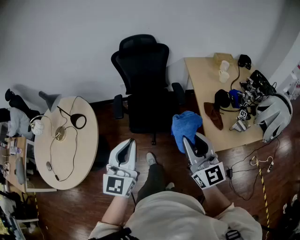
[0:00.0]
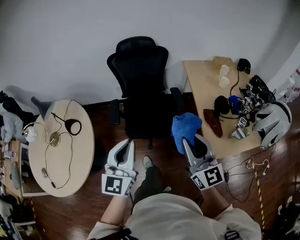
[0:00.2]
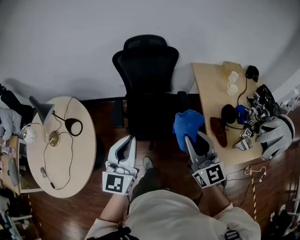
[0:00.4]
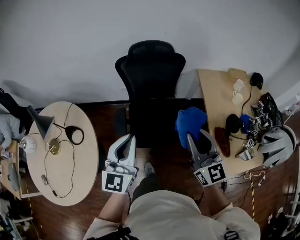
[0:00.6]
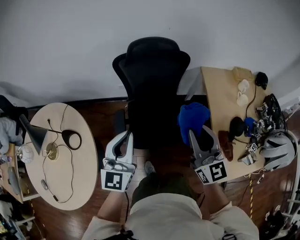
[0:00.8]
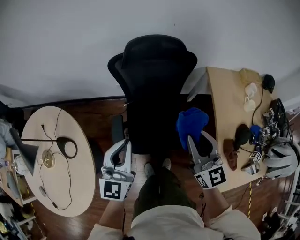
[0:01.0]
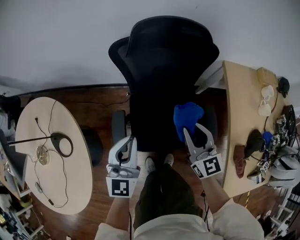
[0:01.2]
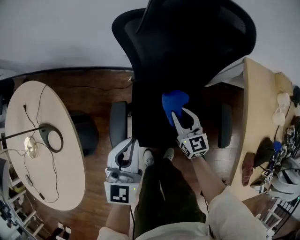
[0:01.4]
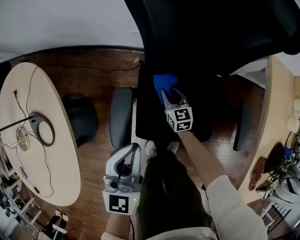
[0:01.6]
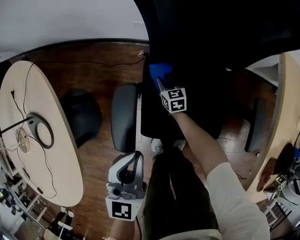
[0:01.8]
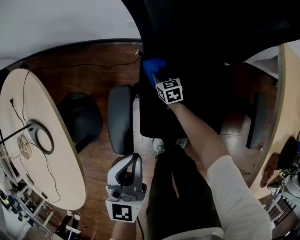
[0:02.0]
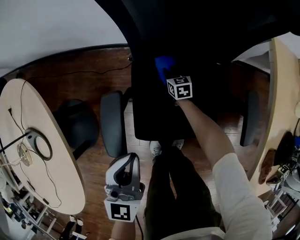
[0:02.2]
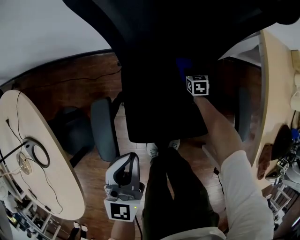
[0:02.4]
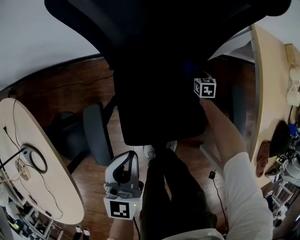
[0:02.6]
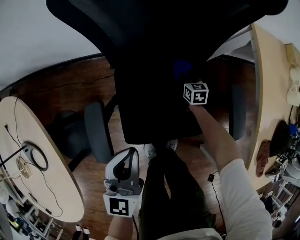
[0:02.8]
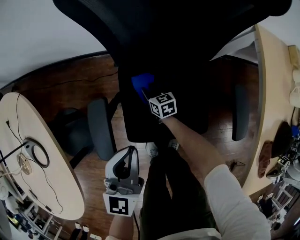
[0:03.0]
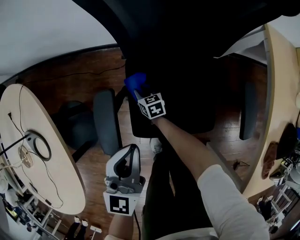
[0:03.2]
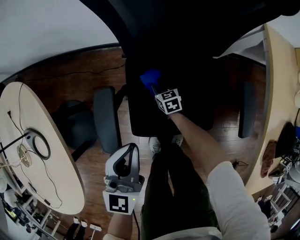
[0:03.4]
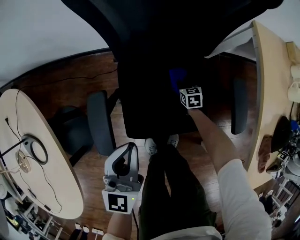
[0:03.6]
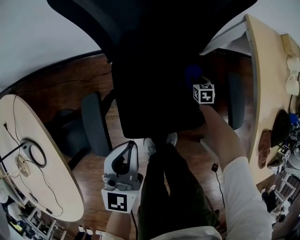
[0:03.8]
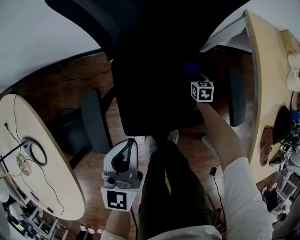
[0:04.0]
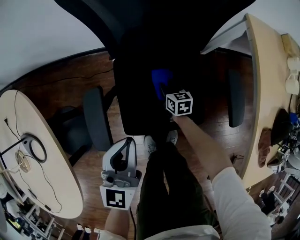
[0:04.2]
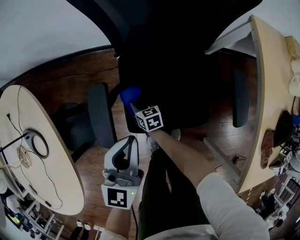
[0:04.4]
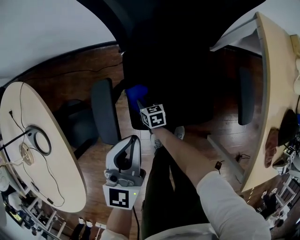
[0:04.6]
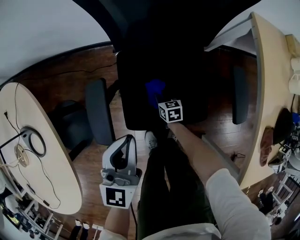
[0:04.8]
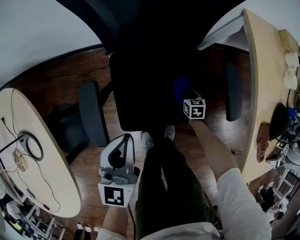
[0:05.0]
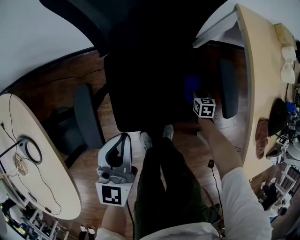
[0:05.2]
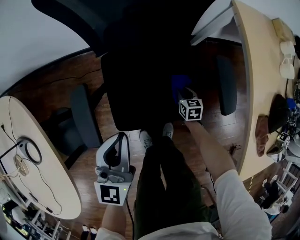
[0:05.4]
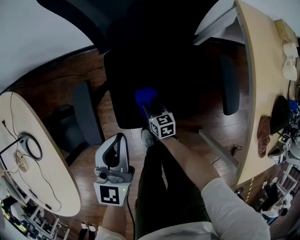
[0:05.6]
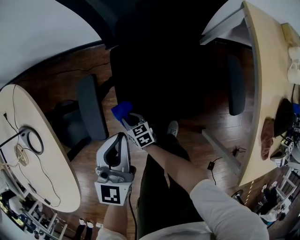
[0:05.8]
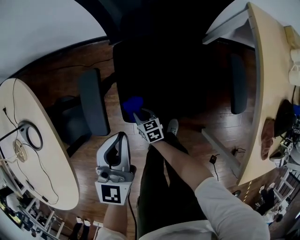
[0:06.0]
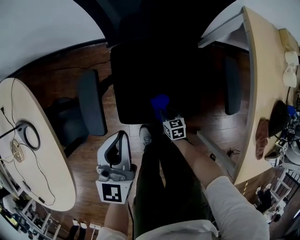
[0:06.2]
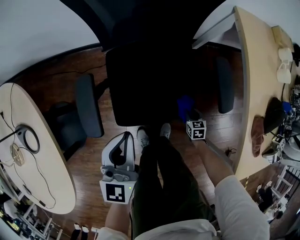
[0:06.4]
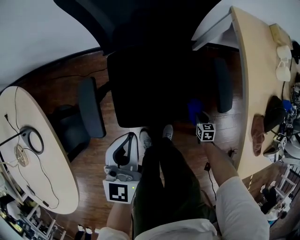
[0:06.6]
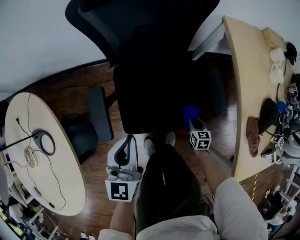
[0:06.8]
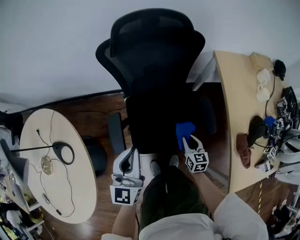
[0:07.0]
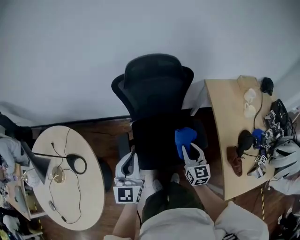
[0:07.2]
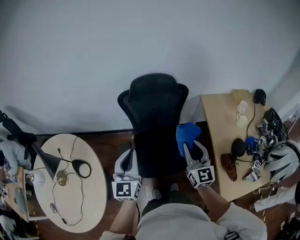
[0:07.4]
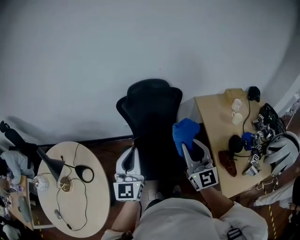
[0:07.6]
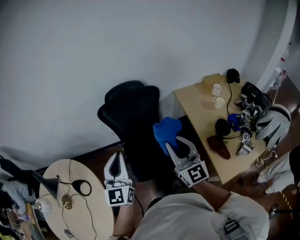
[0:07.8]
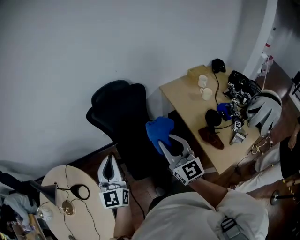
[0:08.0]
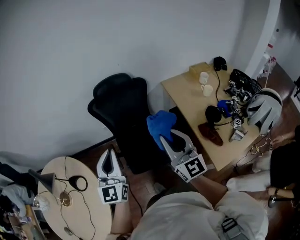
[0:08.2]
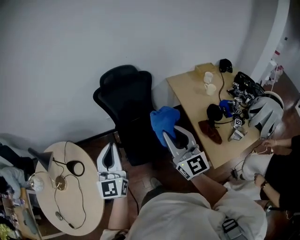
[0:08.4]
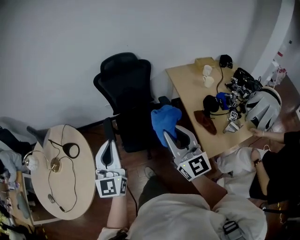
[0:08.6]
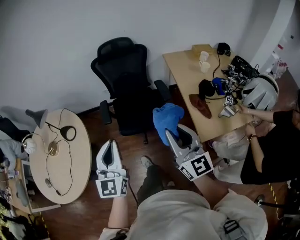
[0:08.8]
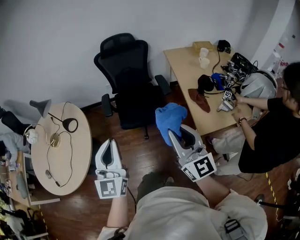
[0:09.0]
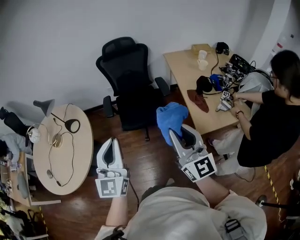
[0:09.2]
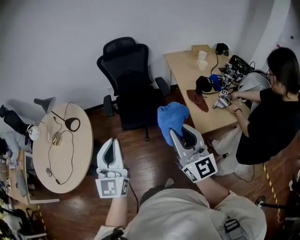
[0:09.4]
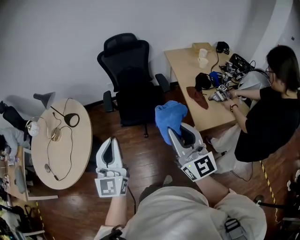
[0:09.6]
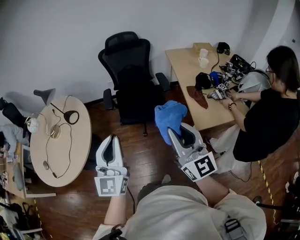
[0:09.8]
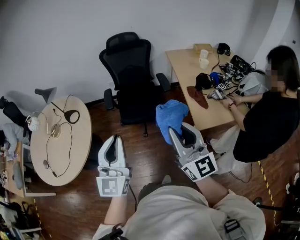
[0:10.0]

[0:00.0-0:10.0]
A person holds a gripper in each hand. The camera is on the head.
0:00.0 to 0:01.4: The pair of grippers is taken forward, approximately 70 cm. The left gripper shifts about 25 cm downward. Meanwhile the right gripper travels downward by roughly 50 cm, and tilts its fingers about 40 degrees downward.
0:01.4 to 0:02.8: The right gripper shifts about 35 cm downward and to the right, and changes its angle by roughly 40 degrees. The left gripper goes some 15 cm downward and to the right.
0:02.8 to 0:04.2: The right gripper swings left and right, about 35 cm each way, with 2 reversals.
0:04.2 to 0:05.8: The right gripper swings left and right, about 40 cm each way, with 2 reversals.
0:05.8 to 0:07.2: The right gripper goes approximately 60 cm upward and to the right, and tips its fingers upward by roughly 40 degrees; the left gripper is displaced upward and backward by roughly 35 cm.
0:07.2 to 0:08.6: The left gripper goes some 40 cm backward. The right gripper is displaced backward and upward by approximately 50 cm, and changes its angle by roughly 30 degrees.
0:08.6 to 0:10.0: Both grippers move backward, some 25 cm.

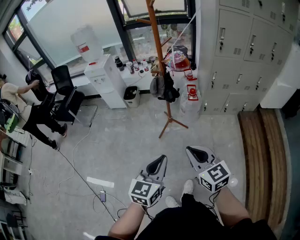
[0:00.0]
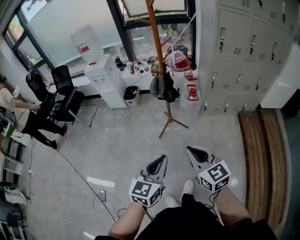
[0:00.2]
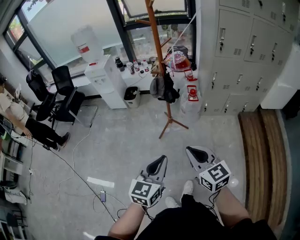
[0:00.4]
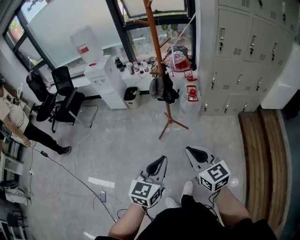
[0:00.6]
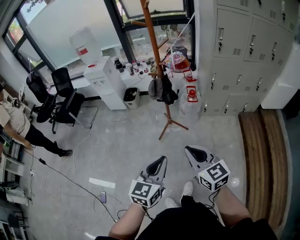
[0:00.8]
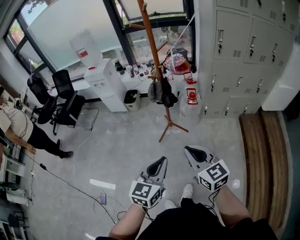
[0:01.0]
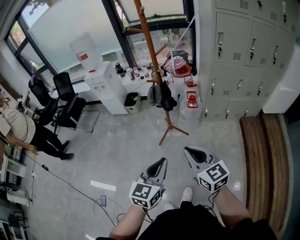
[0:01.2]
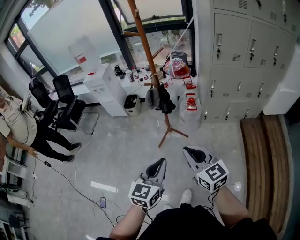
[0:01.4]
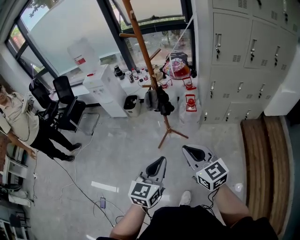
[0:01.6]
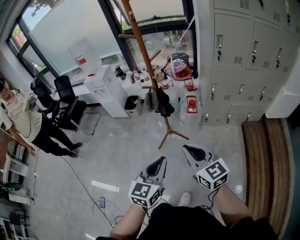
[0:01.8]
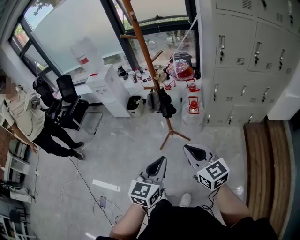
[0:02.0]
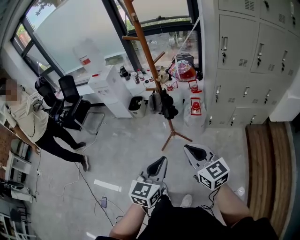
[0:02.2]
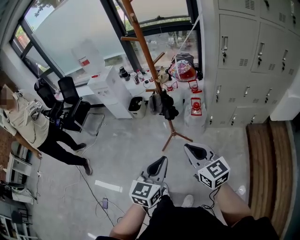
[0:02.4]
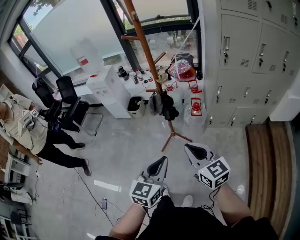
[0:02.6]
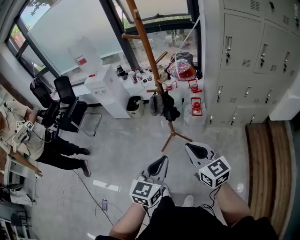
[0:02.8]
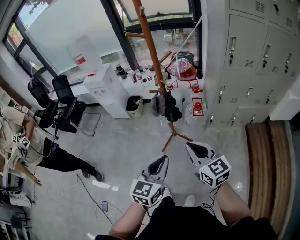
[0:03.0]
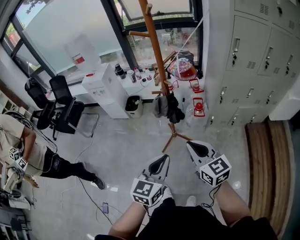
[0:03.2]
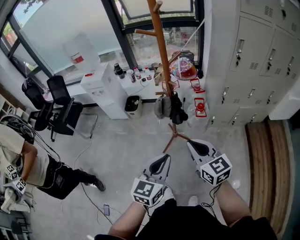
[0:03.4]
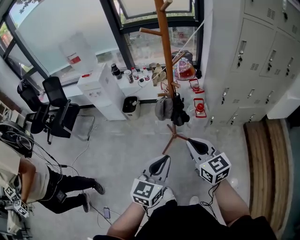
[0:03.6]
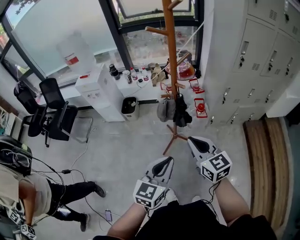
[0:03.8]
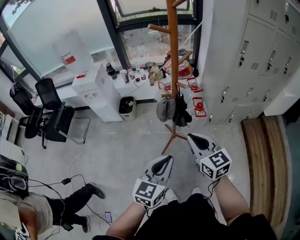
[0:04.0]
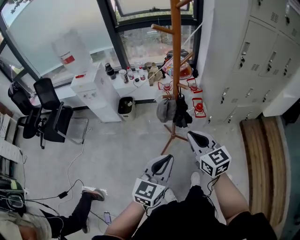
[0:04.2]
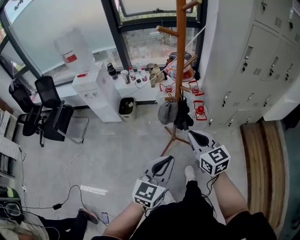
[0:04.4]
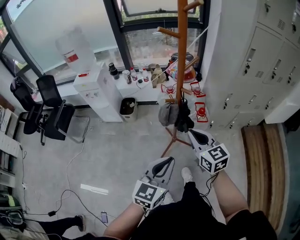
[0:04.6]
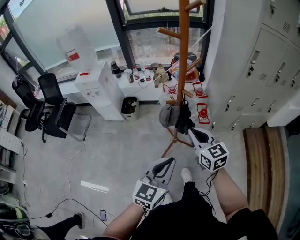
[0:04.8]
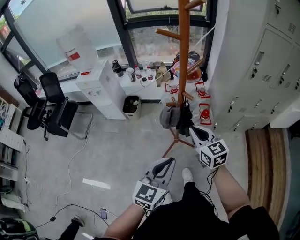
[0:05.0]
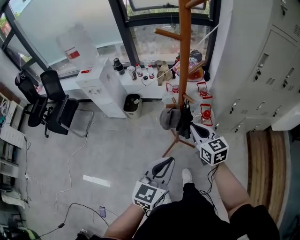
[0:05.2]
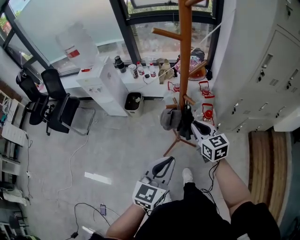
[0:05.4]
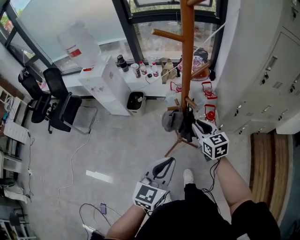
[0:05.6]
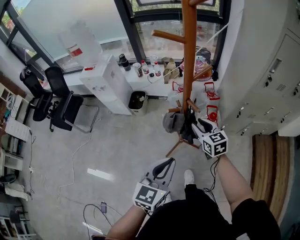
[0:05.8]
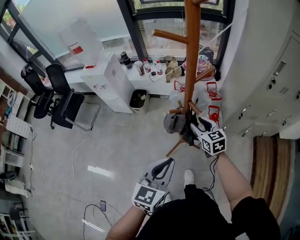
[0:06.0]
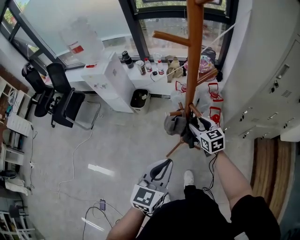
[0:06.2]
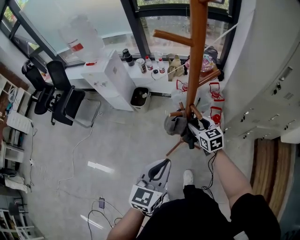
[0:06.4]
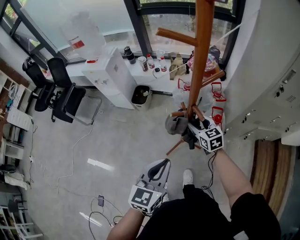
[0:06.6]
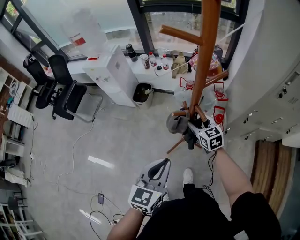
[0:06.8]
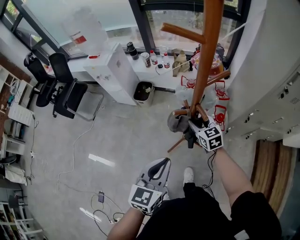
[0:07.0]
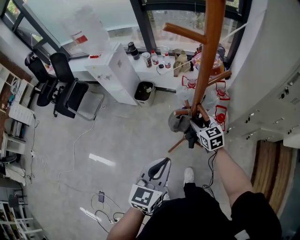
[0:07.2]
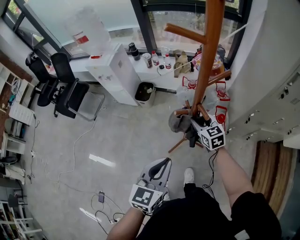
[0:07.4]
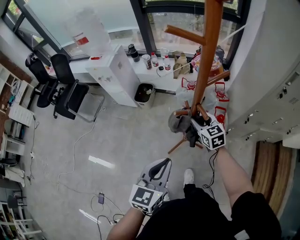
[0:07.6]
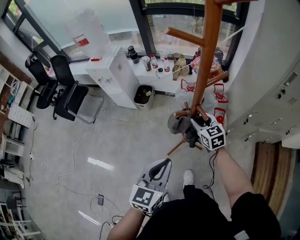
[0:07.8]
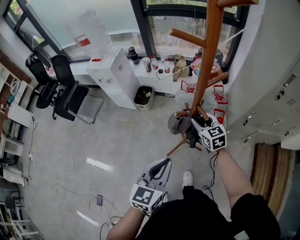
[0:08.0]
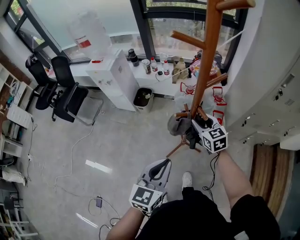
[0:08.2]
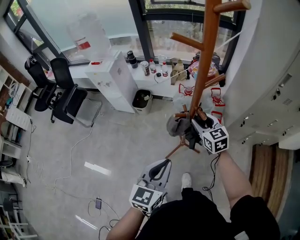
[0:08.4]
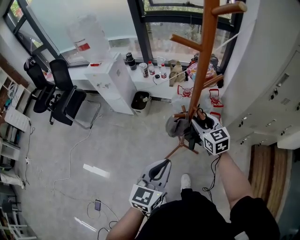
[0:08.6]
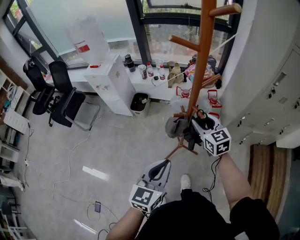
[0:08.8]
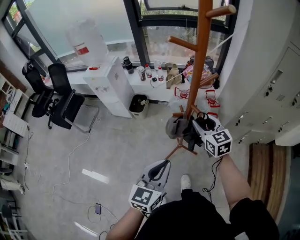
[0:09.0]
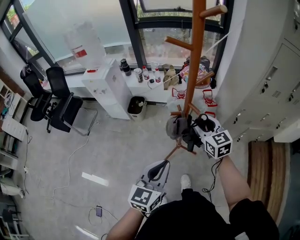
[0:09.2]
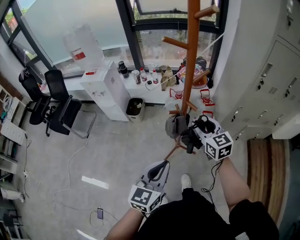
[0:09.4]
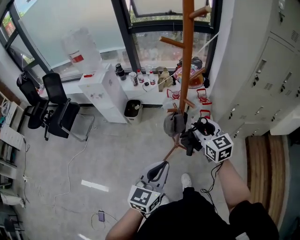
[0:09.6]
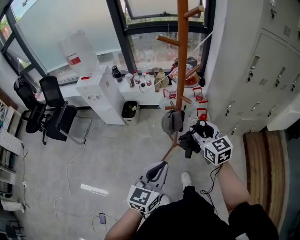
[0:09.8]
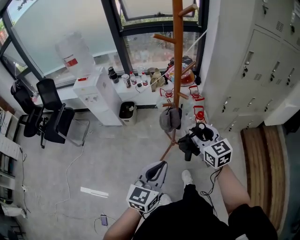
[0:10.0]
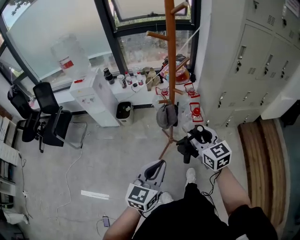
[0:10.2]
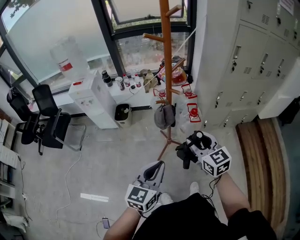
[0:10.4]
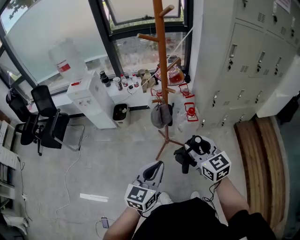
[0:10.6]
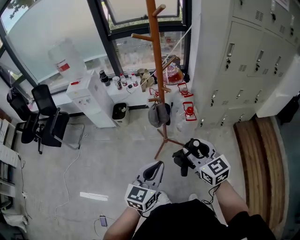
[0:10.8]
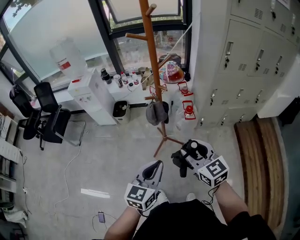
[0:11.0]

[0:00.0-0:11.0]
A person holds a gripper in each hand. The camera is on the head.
0:00.0 to 0:01.6: The left gripper travels to the right and forward by roughly 10 cm. The right gripper goes some 10 cm forward and to the right.
0:01.6 to 0:03.2: The left gripper heads forward and to the left, covering approximately 10 cm. The right gripper travels forward by approximately 10 cm.
0:03.2 to 0:04.8: The right gripper travels forward and to the left by about 20 cm; the left gripper moves forward and to the left, roughly 10 cm.
0:04.8 to 0:06.2: The right gripper goes approximately 20 cm forward and downward, and opens up; the left gripper goes some 10 cm forward.
0:06.2 to 0:07.8: The grippers make only small movements.
0:07.8 to 0:09.4: The left gripper goes approximately 5 cm backward; the right gripper shifts approximately 15 cm upward and backward.
0:09.4 to 0:11.0: The left gripper travels backward and to the right by about 15 cm. Meanwhile the right gripper goes approximately 25 cm backward.

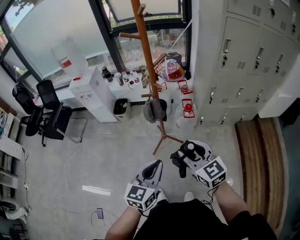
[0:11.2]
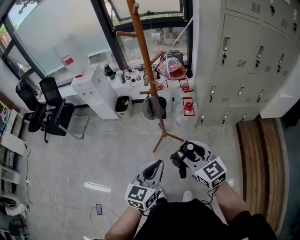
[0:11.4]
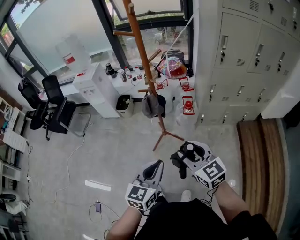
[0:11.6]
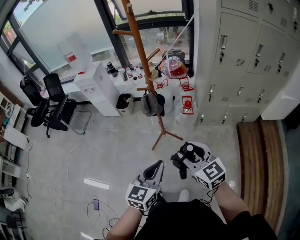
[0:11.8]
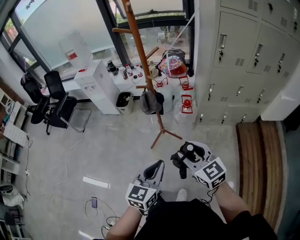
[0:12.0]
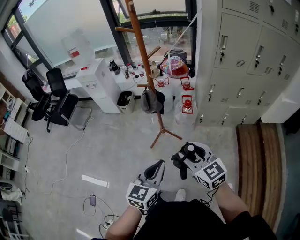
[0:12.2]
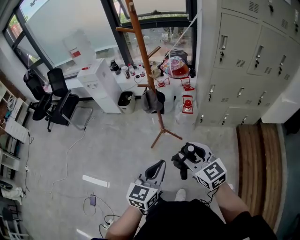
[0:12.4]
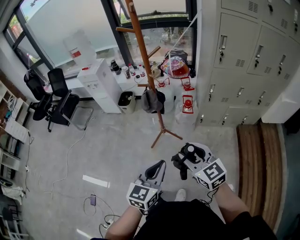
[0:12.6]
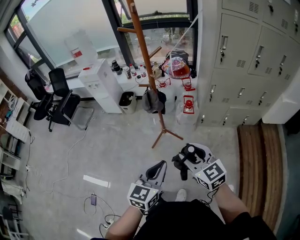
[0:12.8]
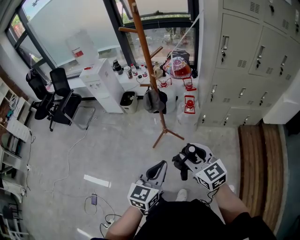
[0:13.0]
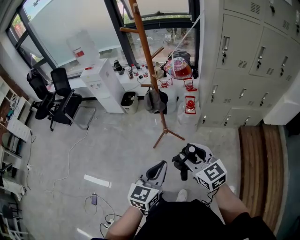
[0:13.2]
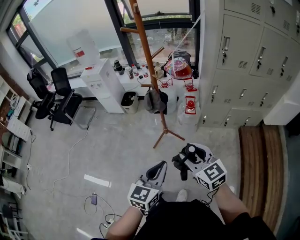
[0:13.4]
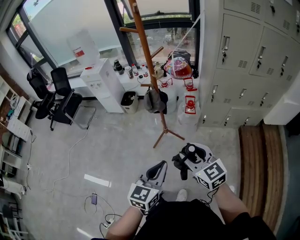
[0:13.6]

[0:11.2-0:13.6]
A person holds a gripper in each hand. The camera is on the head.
0:11.2 to 0:12.4: The grippers both shift backward and to the right by approximately 10 cm.
0:12.4 to 0:13.6: Neither gripper changes place.
